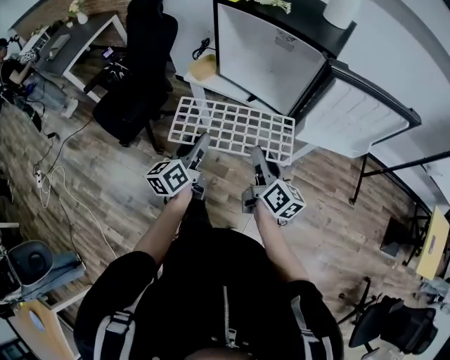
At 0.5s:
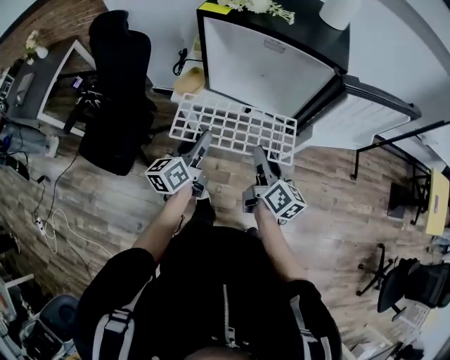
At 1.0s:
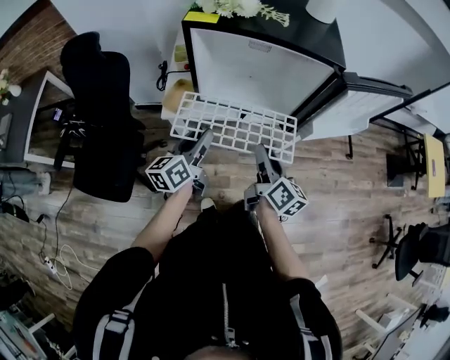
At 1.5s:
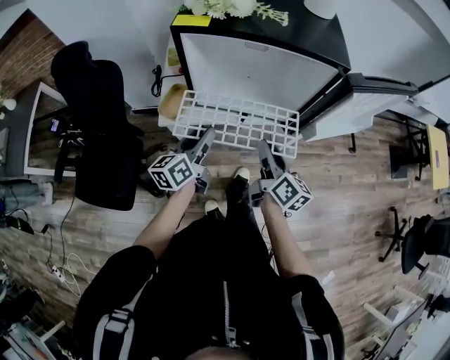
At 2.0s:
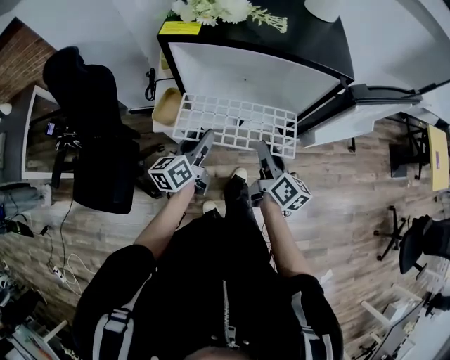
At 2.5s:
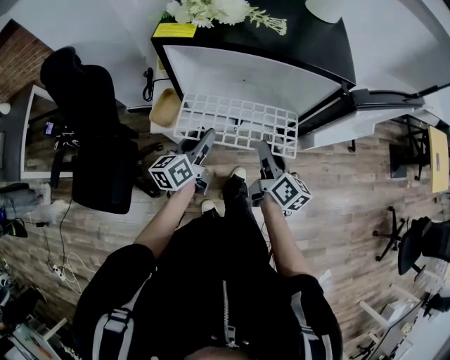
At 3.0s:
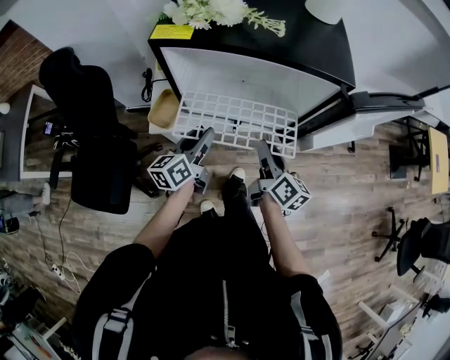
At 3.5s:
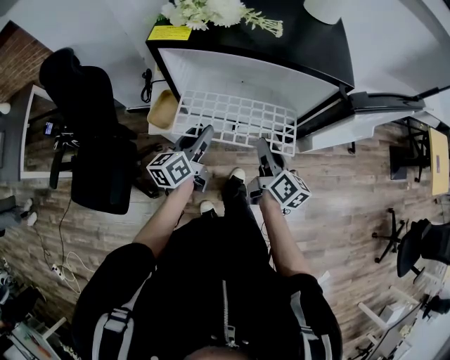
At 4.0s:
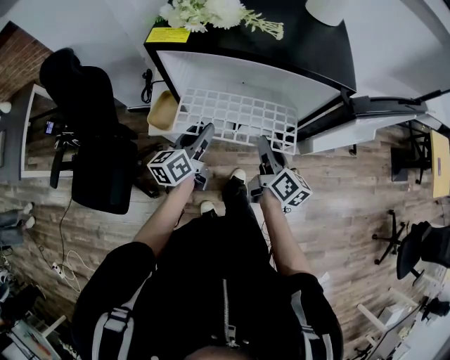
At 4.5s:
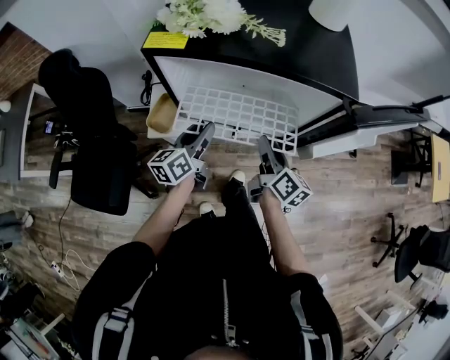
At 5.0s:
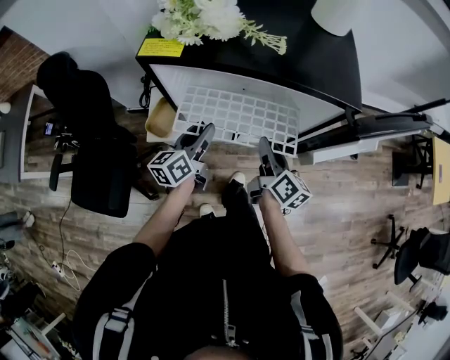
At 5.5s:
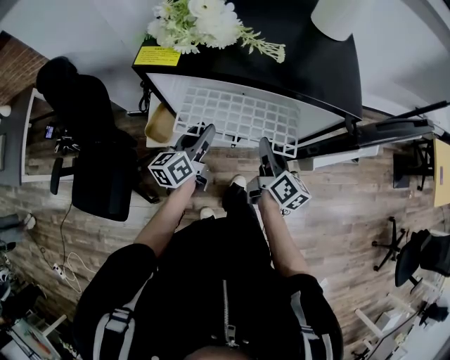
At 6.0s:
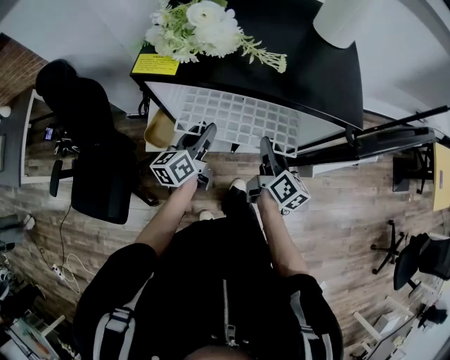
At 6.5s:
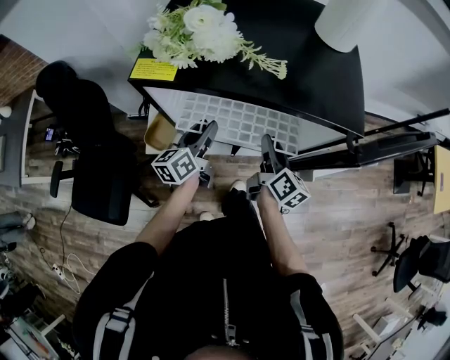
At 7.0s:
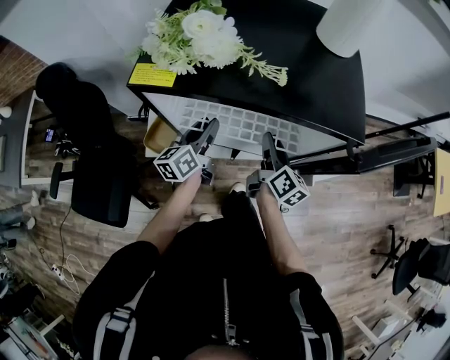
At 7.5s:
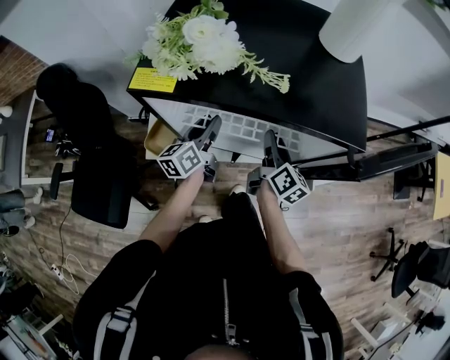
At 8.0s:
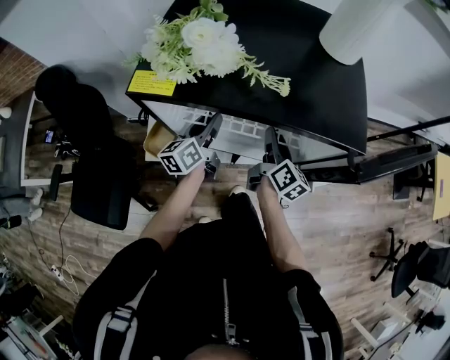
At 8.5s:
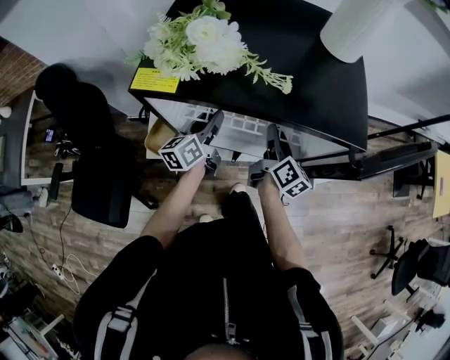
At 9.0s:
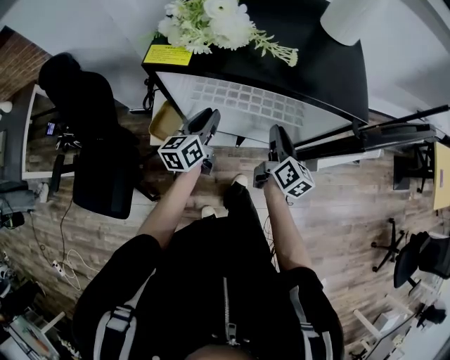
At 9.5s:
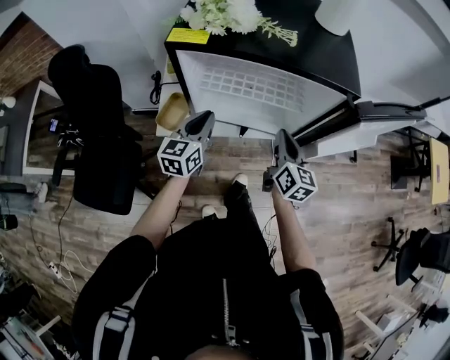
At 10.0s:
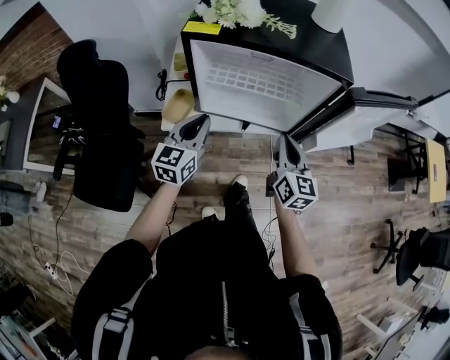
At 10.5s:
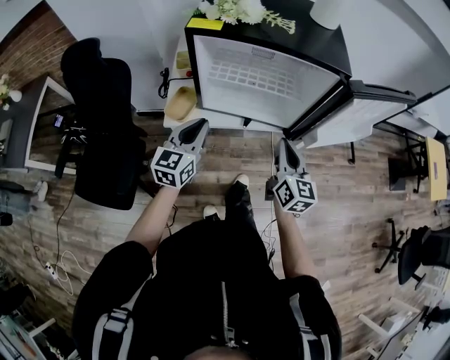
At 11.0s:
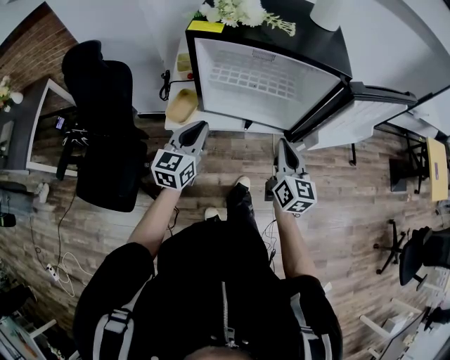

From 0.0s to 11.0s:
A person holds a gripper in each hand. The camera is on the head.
From 0.0s to 2.0s: The right gripper ends up some 20 cm from where it was, and rotates some 30 degrees, while the left gripper moves some 25 cm, and changes its angle by some 30 degrees.
From 2.0s to 3.5s: The grippers stay close to where they were, moving slightly.
From 3.5s to 5.5s: Both grippers move forward, some 5 cm.
From 5.5s to 7.5s: The two grippers go approximately 10 cm forward.
From 7.5s to 9.0s: The grippers make only small movements.
From 9.0s to 11.0s: Both grippers move backward, approximately 15 cm. The left gripper changes its angle by approximately 20 degrees. The right gripper swivels roughly 30 degrees.

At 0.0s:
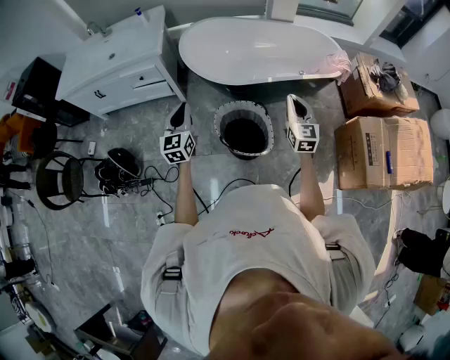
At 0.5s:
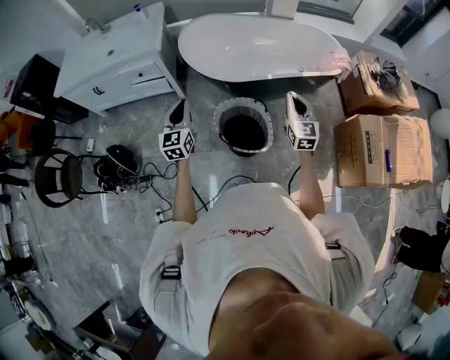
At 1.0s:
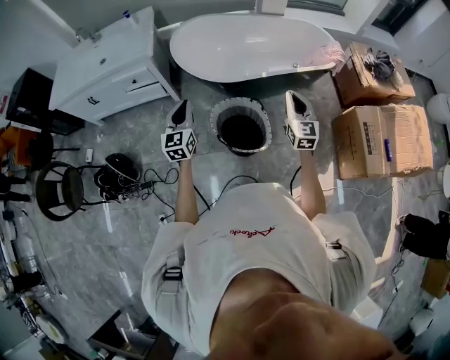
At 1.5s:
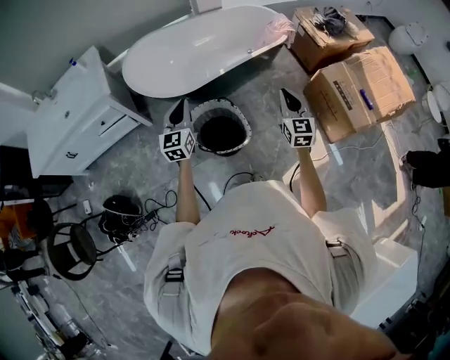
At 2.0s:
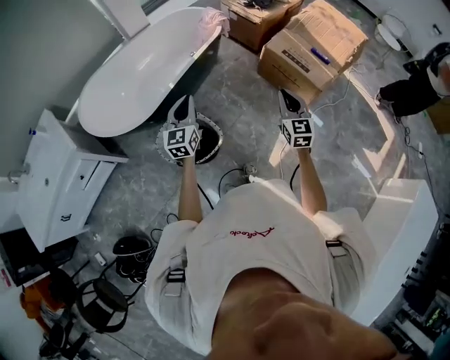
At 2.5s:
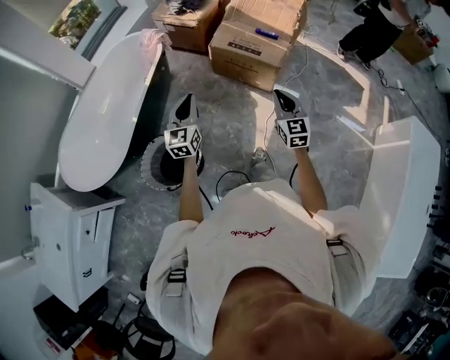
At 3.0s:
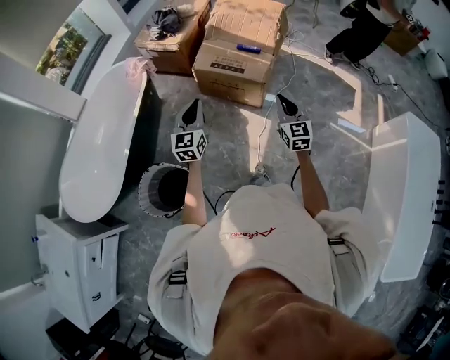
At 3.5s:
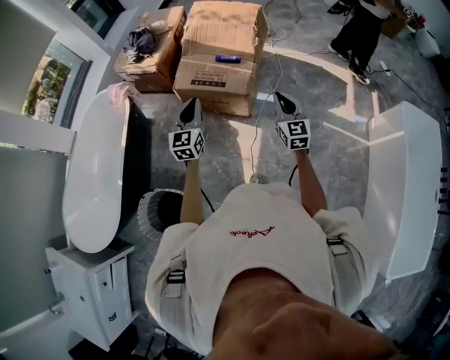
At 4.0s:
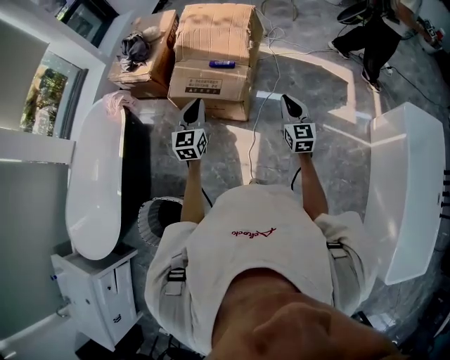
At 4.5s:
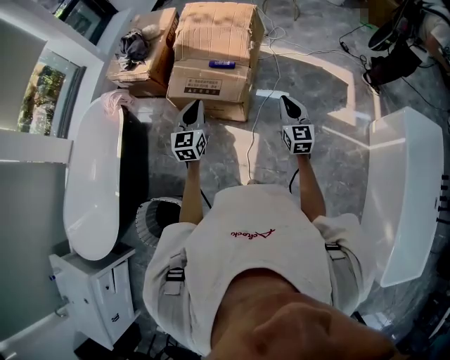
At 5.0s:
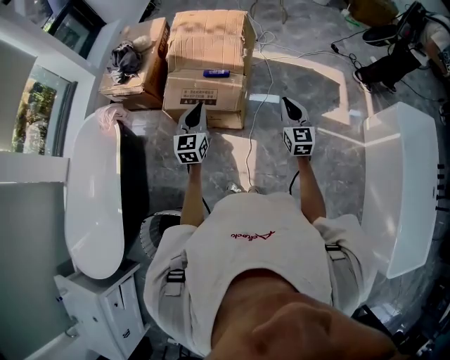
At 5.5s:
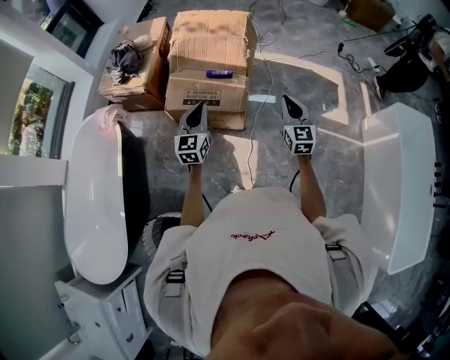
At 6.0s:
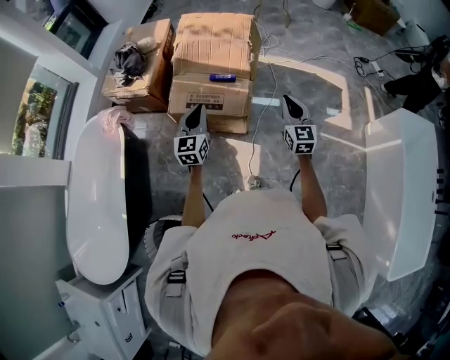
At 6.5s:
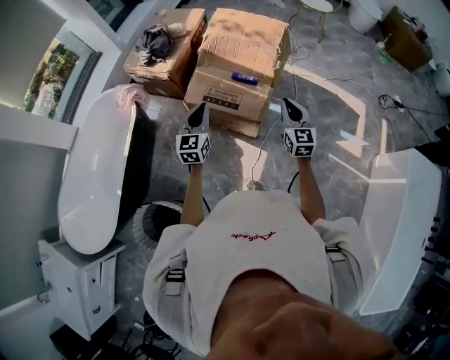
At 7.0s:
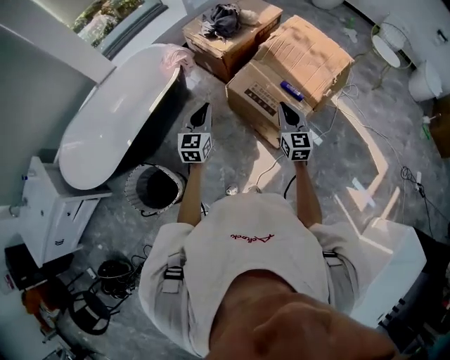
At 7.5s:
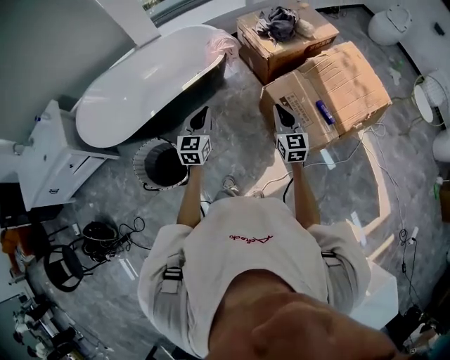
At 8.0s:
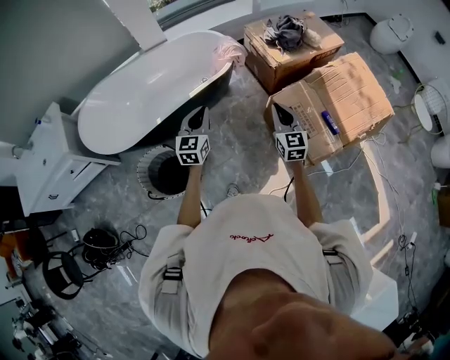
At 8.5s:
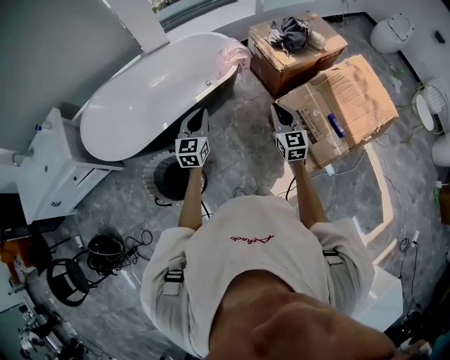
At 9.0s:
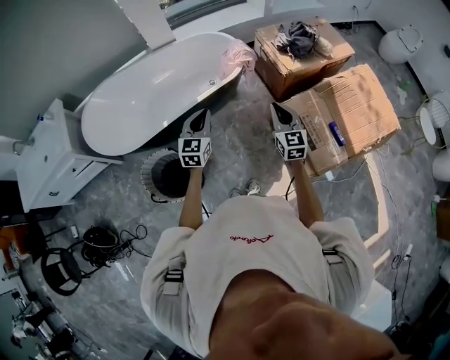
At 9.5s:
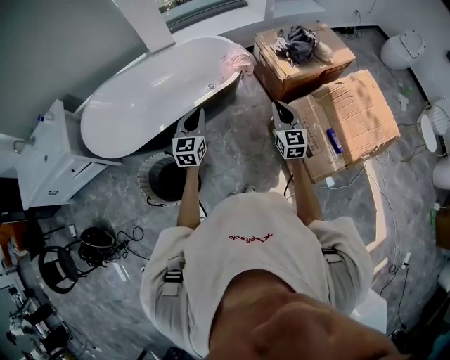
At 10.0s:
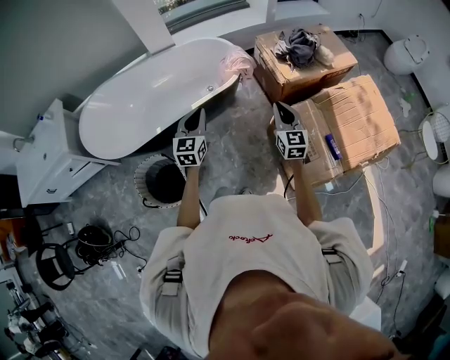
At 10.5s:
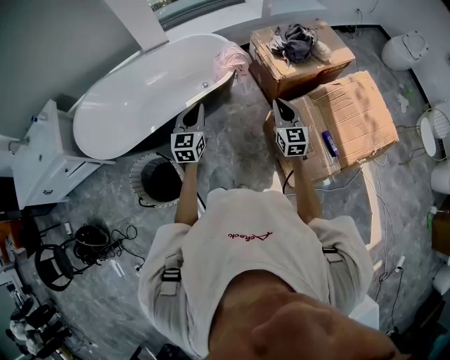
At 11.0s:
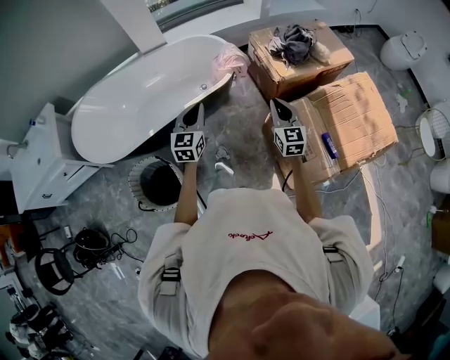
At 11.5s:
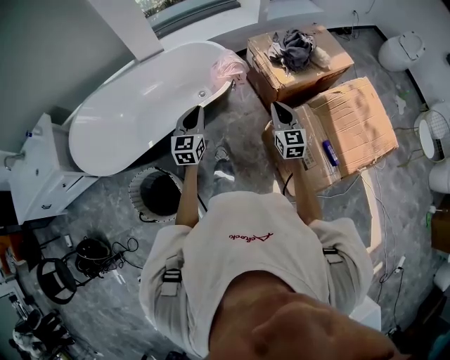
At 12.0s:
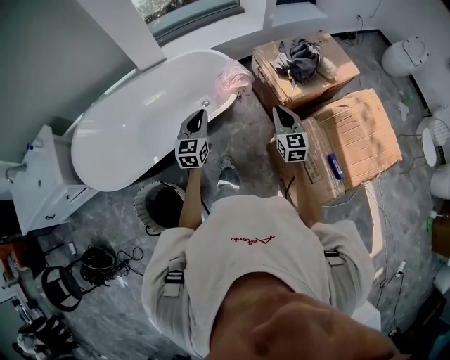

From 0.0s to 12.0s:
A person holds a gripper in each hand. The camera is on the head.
From 0.0s to 2.0s: The right gripper ends up roughly 30 cm from where it was, and turns by some 40 degrees; the left gripper moves roughly 30 cm, and rotates roughly 50 degrees.
From 2.0s to 4.0s: Both grippers are carried roughly 60 cm. The left gripper changes its angle by some 40 degrees. The right gripper rotates approximately 30 degrees.
From 4.0s to 6.0s: Both grippers move forward and to the left, about 10 cm.
From 6.0s to 8.0s: The left gripper ends up about 40 cm from where it was, and swivels some 50 degrees; the right gripper moves about 40 cm, and changes its angle by about 60 degrees.
From 8.0s to 10.0s: Both grippers move forward, some 10 cm.
From 10.0s to 12.0s: The grippers both shift forward by approximately 20 cm.

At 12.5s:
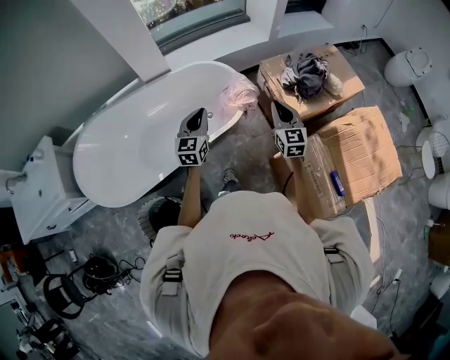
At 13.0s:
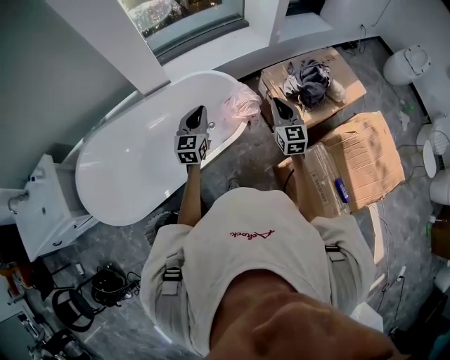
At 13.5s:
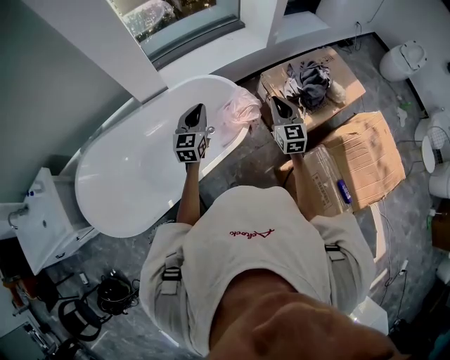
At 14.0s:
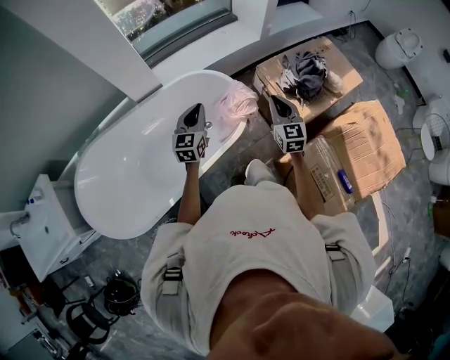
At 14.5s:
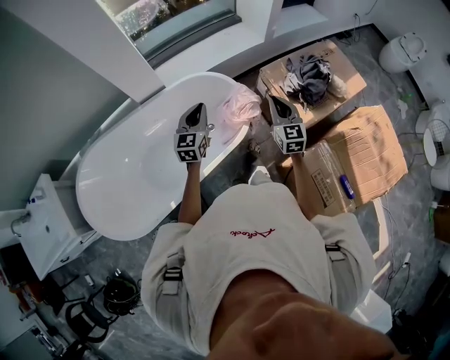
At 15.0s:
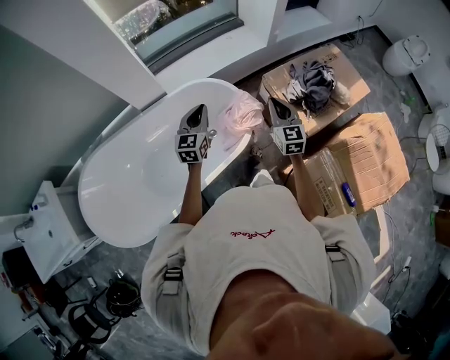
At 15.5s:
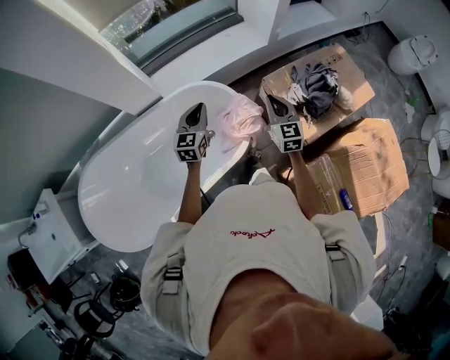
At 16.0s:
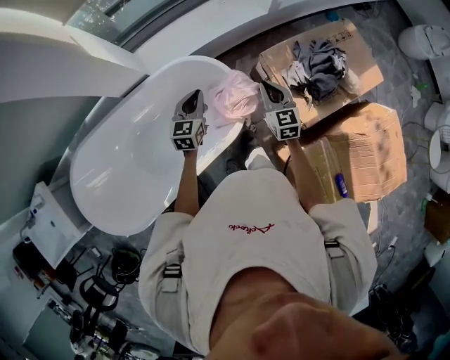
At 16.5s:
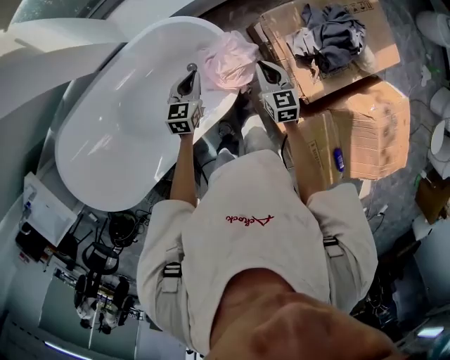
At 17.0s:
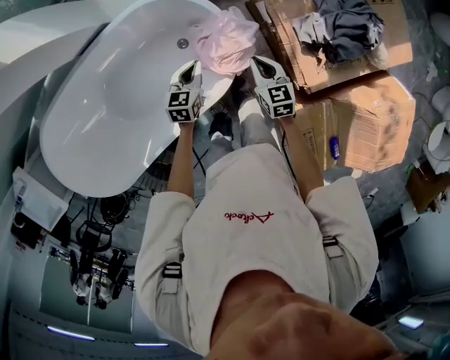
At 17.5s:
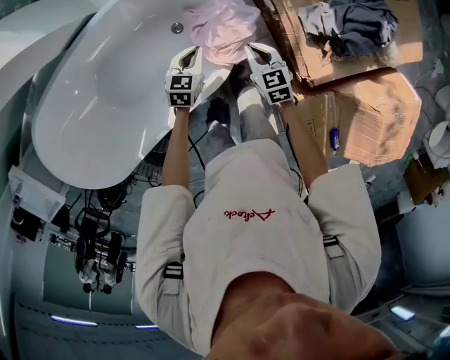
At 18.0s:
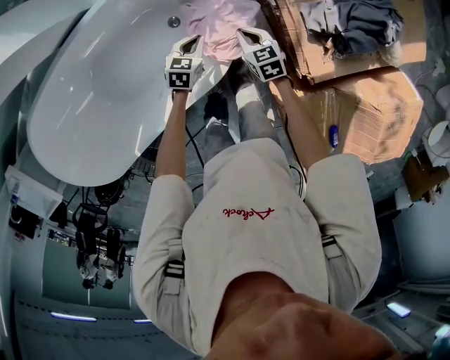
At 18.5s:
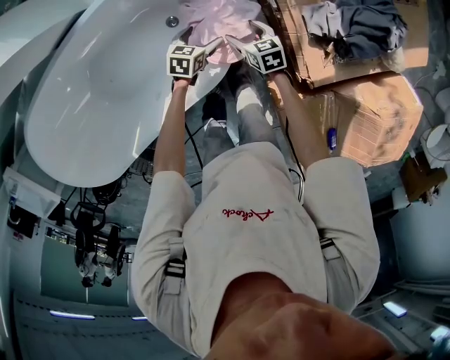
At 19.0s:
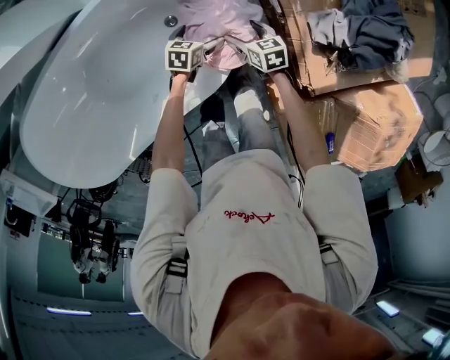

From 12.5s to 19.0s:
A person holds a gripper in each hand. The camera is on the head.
From 12.5s to 14.5s: Both grippers move forward, roughly 15 cm.
From 14.5s to 17.0s: The two grippers go some 35 cm downward and forward. The right gripper swivels roughly 40 degrees. Meanwhile the left gripper angles its fingers downward, by about 30 degrees.
From 17.0s to 19.0s: Both grippers travel together downward, roughly 20 cm. The left gripper changes its angle by some 20 degrees, and opens, while the right gripper swivels some 20 degrees, and opens its fingers.
